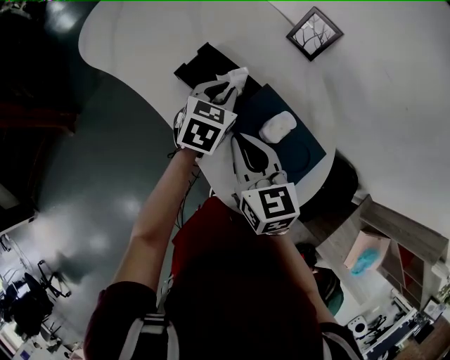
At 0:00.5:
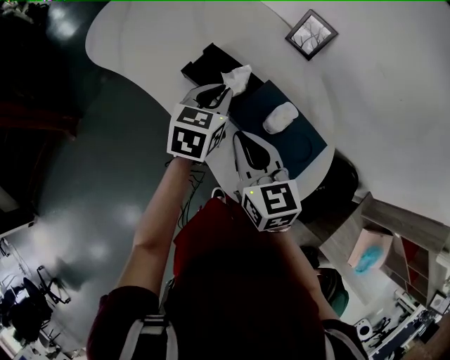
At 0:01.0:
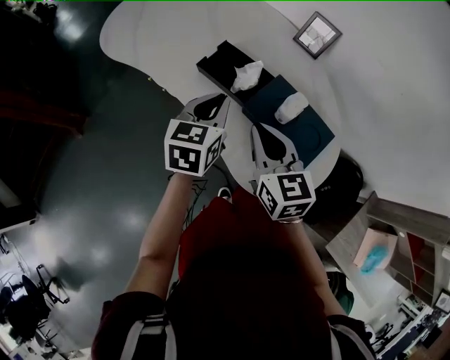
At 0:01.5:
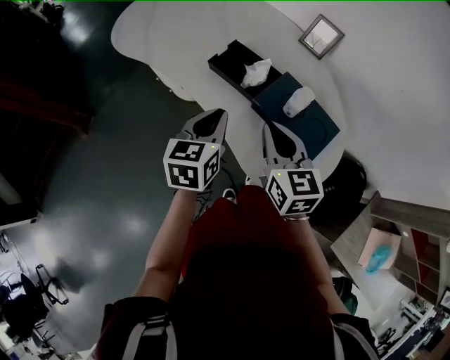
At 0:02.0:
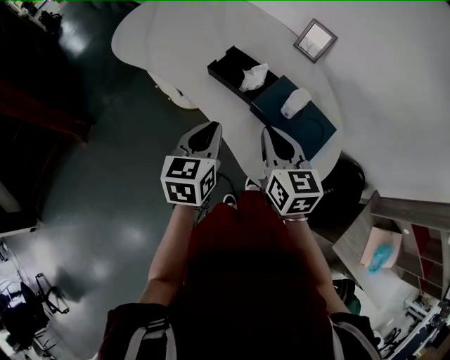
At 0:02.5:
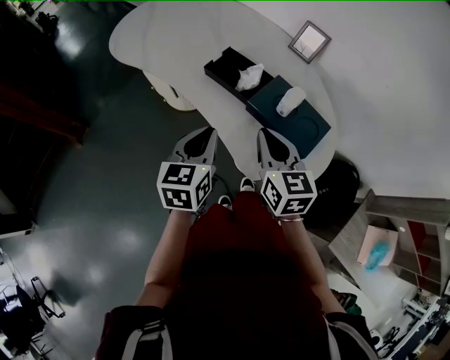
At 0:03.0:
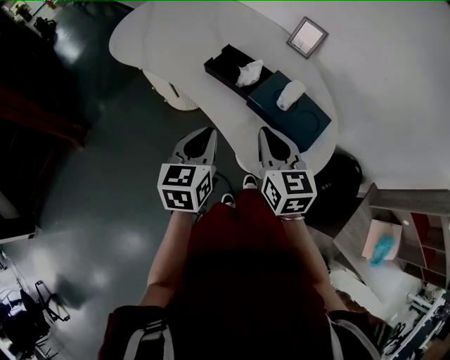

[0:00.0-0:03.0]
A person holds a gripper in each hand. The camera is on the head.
0:00.0 to 0:01.5: The left gripper shifts approximately 20 cm backward, to the left and upward, and swivels approximately 20 degrees. The right gripper moves backward, some 5 cm.
0:01.5 to 0:03.0: The left gripper goes roughly 5 cm backward.

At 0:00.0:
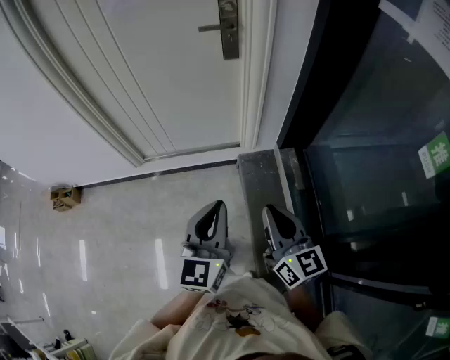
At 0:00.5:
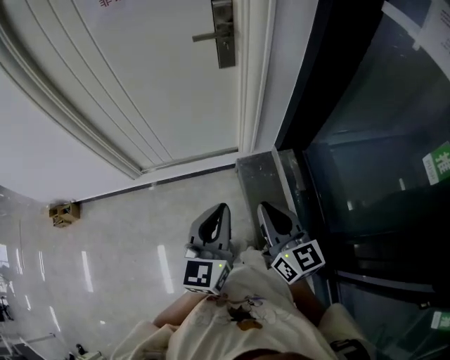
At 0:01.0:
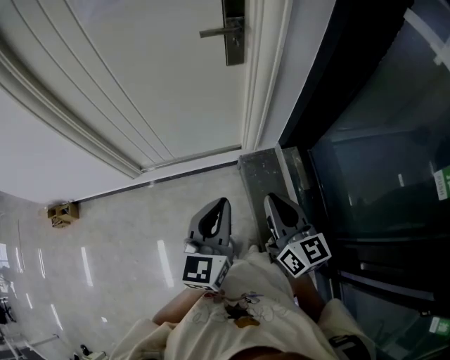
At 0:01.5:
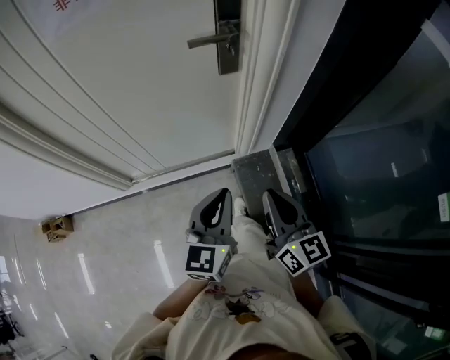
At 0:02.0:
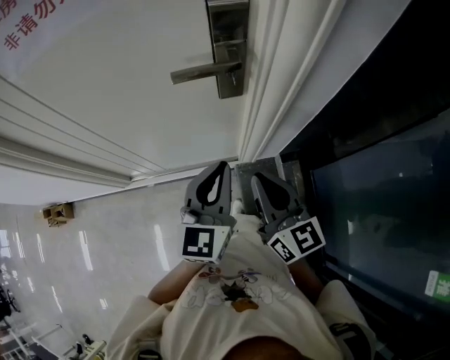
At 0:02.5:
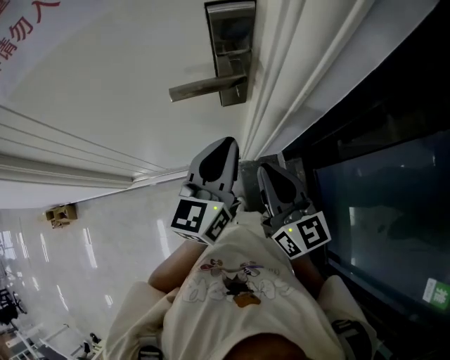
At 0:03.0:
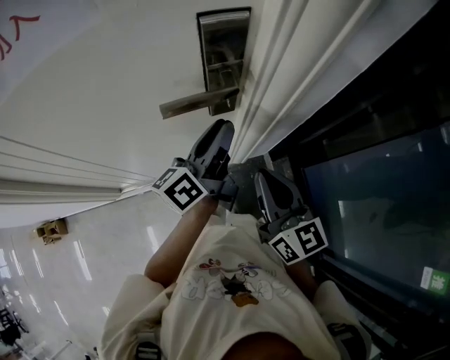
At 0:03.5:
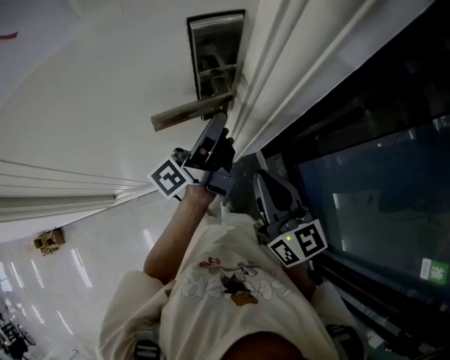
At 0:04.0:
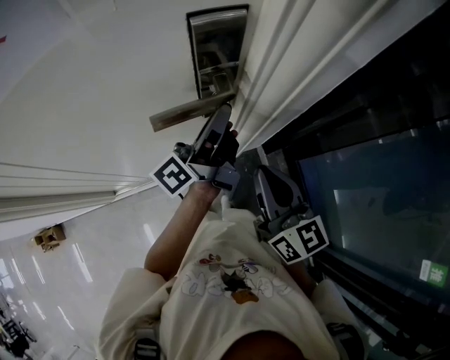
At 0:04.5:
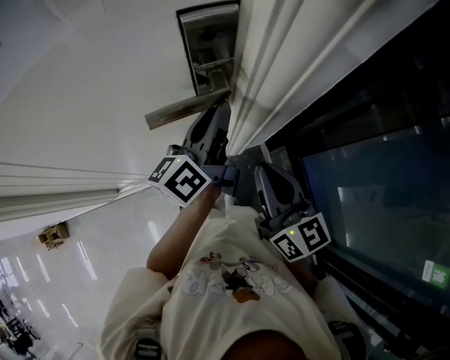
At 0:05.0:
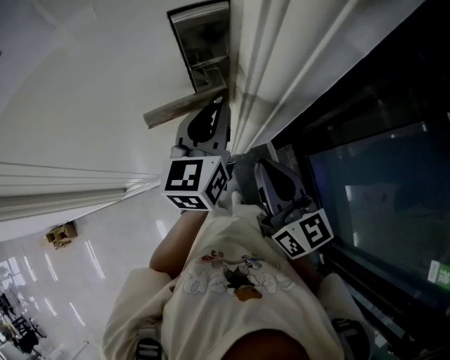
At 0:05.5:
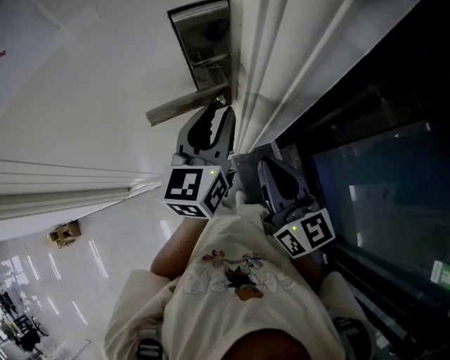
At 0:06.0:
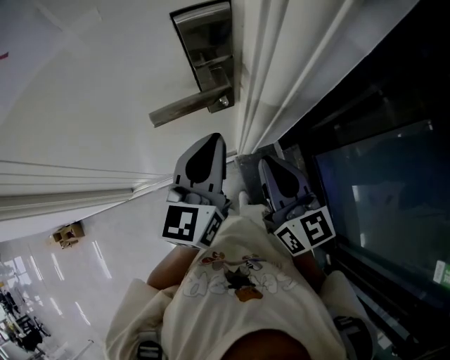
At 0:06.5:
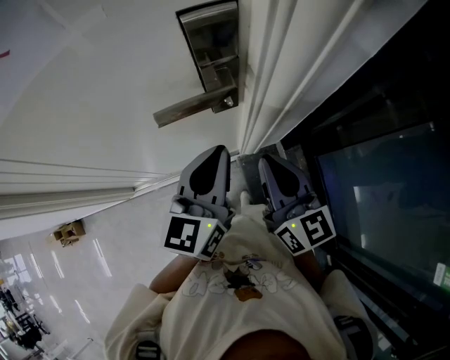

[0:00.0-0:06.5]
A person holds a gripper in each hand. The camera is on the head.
0:00.0 to 0:02.0: The two grippers travel together, forward, approximately 40 cm.
0:02.0 to 0:04.5: The right gripper heads forward, covering some 10 cm; the left gripper is displaced forward by about 20 cm, rolls counterclockwise, seen from behind, by about 50 degrees, and opens and closes again.
0:04.5 to 0:06.5: The left gripper moves backward, roughly 10 cm, and swivels roughly 40 degrees.

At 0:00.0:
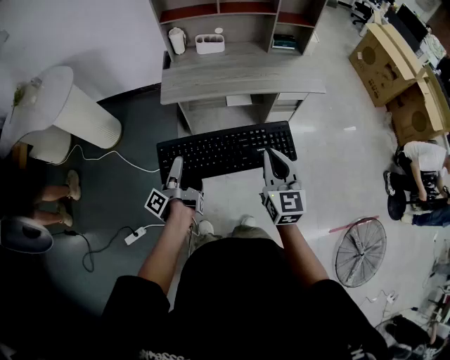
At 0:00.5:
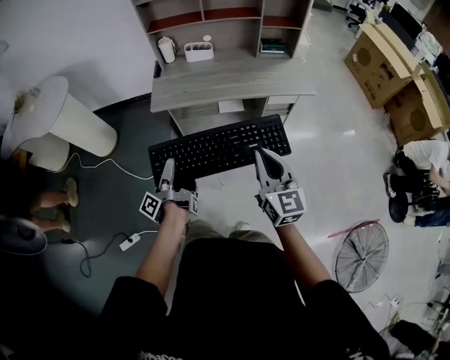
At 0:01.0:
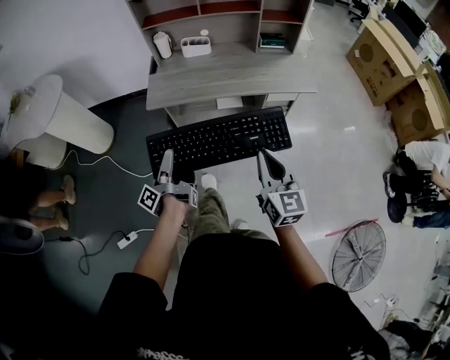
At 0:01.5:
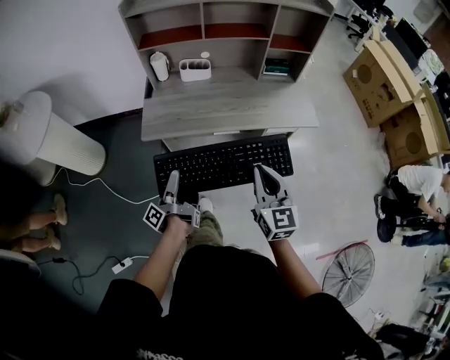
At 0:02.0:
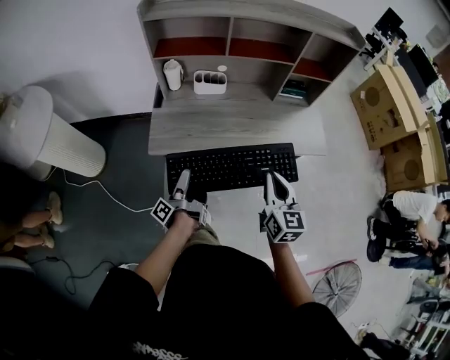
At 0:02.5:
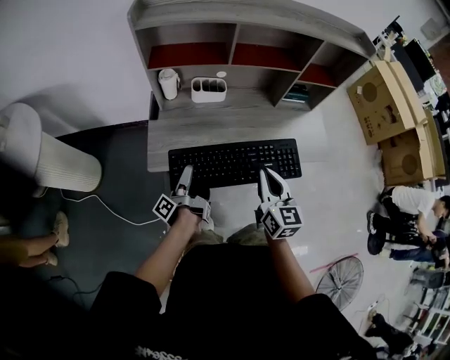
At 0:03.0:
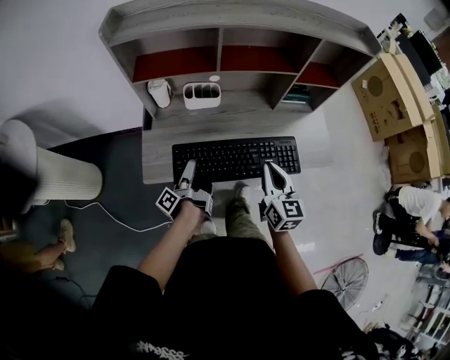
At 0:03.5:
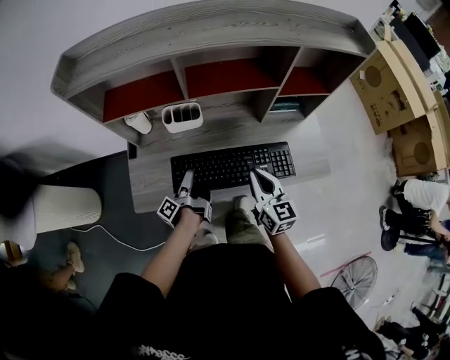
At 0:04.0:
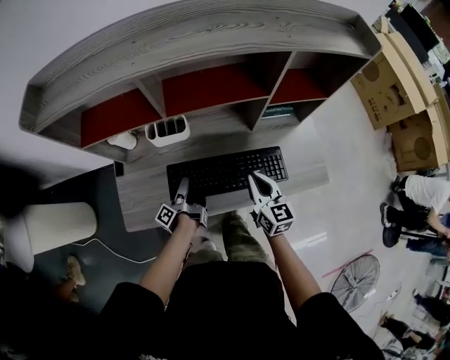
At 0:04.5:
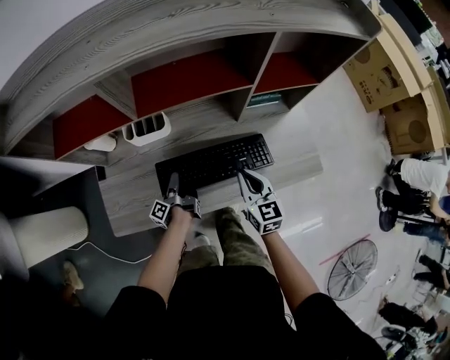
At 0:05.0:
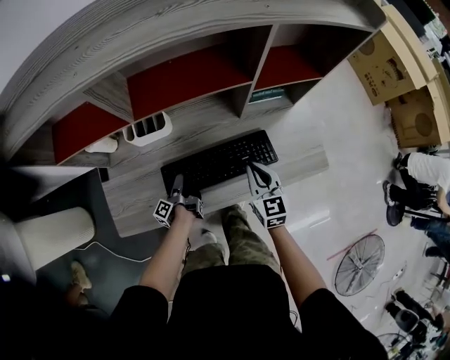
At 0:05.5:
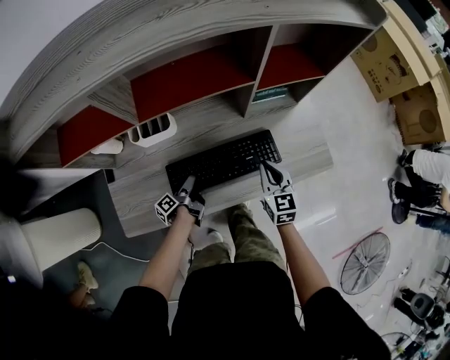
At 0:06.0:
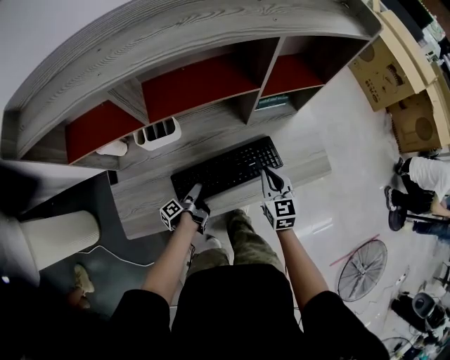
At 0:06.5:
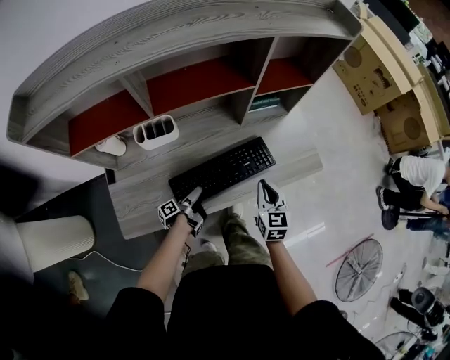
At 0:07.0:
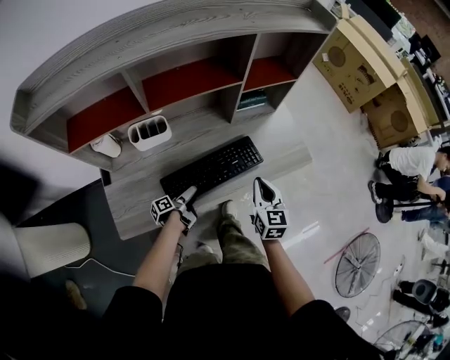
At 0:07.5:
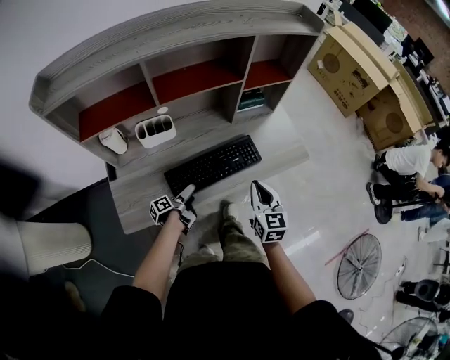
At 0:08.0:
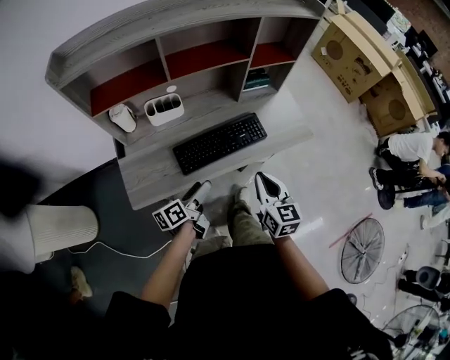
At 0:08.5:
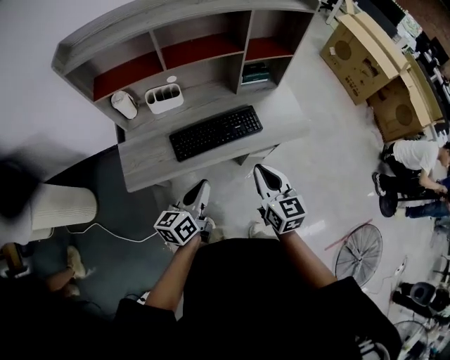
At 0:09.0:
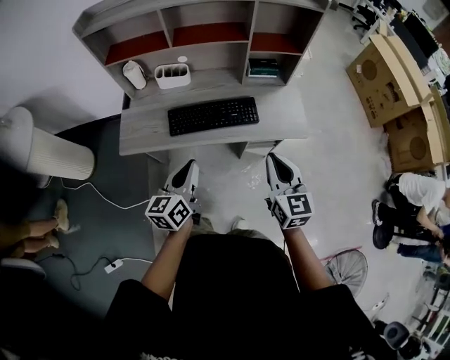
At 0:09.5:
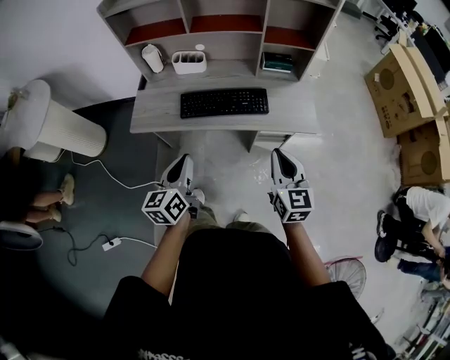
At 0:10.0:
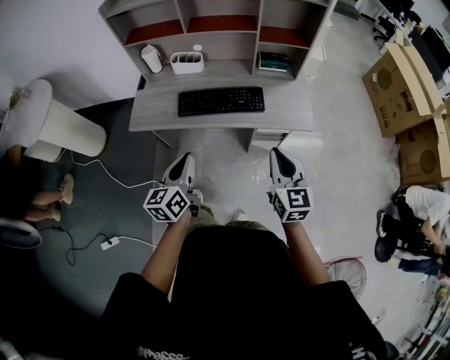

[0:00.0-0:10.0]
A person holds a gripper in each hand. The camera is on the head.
0:00.0 to 0:02.0: The right gripper changes place by approximately 30 cm.
0:02.0 to 0:04.0: The right gripper ends up about 35 cm from where it was.
0:04.0 to 0:06.0: The right gripper changes place by some 10 cm.
0:06.0 to 0:08.0: The right gripper moves approximately 25 cm.
0:08.0 to 0:10.0: The right gripper shifts by some 25 cm, and rotates about 20 degrees.

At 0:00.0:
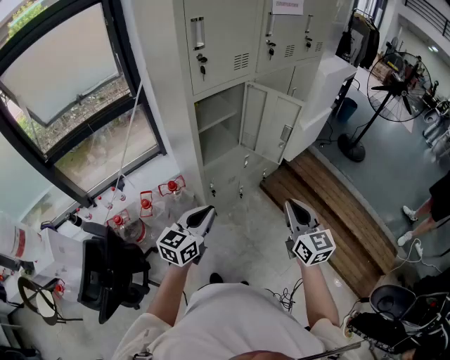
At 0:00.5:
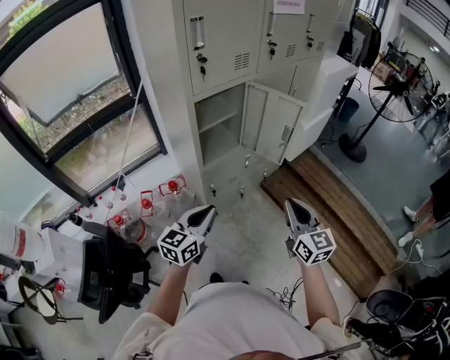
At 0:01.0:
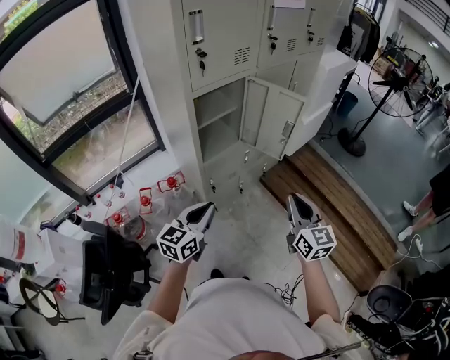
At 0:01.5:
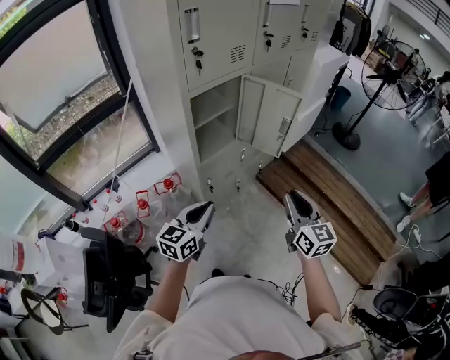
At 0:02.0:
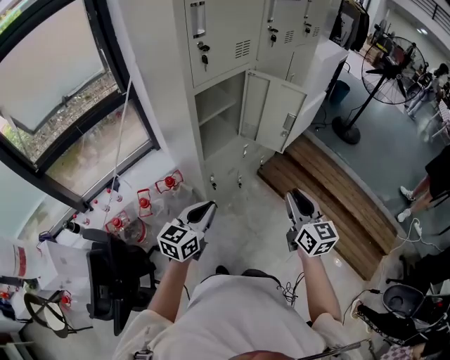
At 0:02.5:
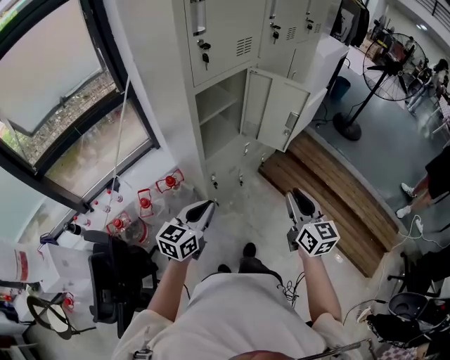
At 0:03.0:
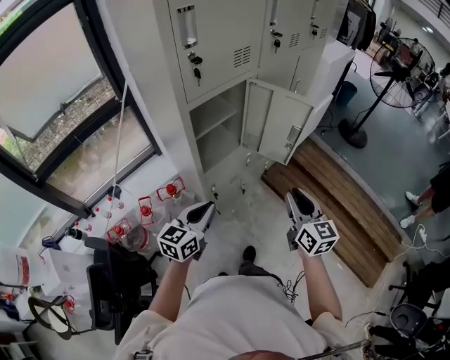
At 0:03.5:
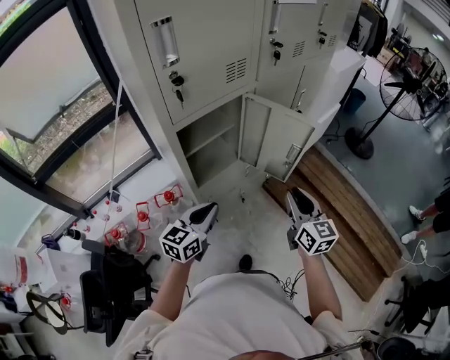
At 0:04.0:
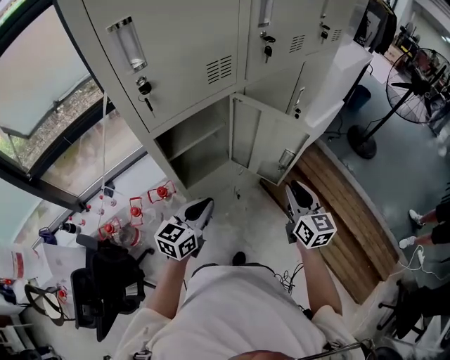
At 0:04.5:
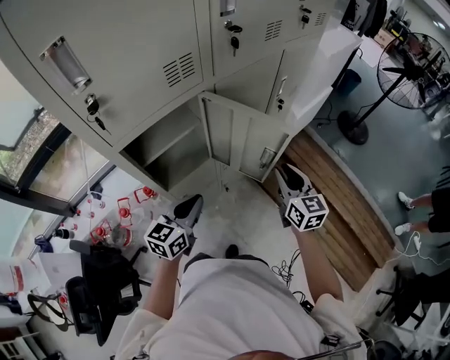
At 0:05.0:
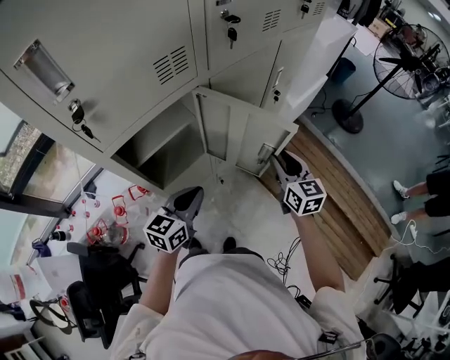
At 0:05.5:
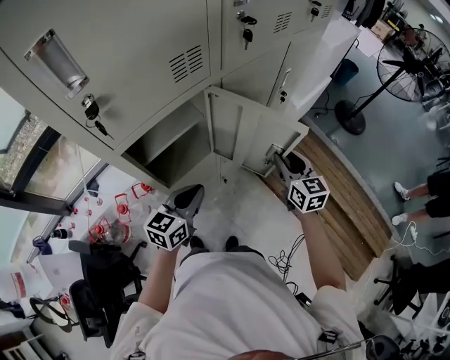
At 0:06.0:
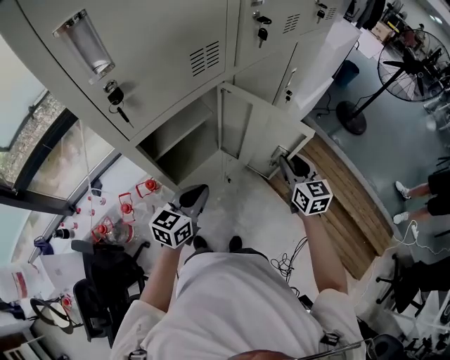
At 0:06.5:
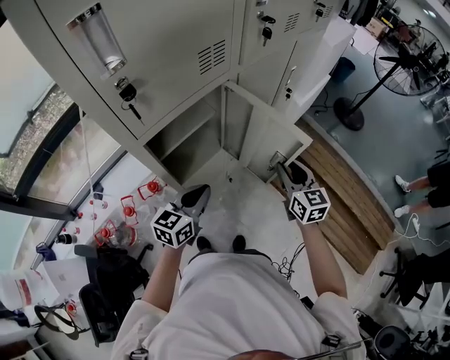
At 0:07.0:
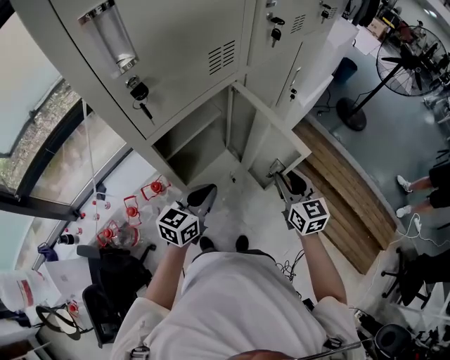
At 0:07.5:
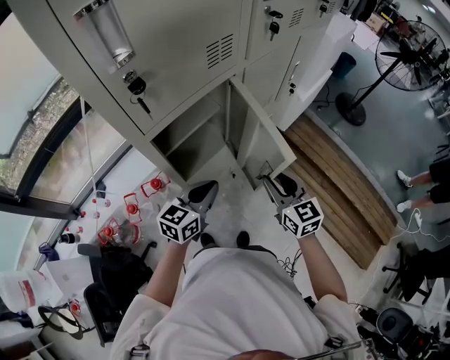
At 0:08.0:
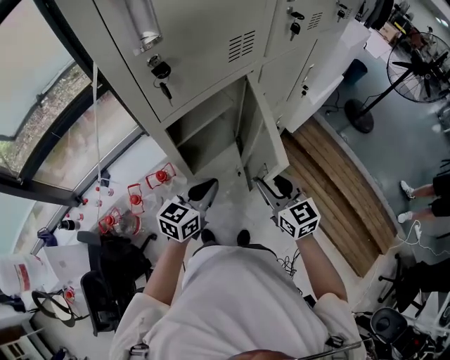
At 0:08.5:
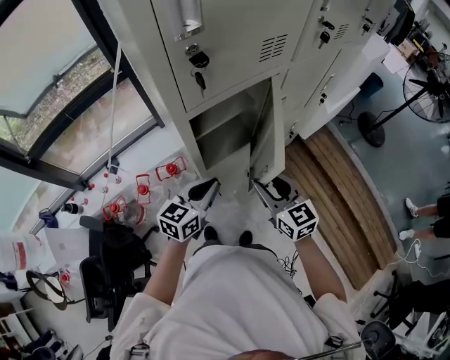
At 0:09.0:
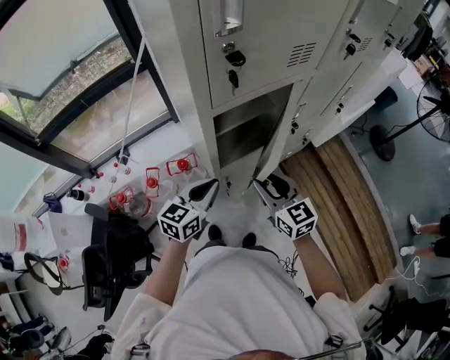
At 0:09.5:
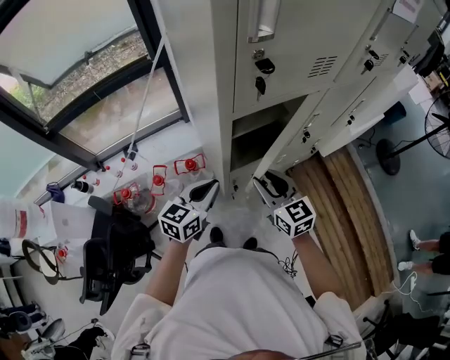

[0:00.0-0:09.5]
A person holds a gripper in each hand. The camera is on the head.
0:00.0 to 0:02.0: The left gripper ends up about 5 cm from where it was.
0:02.0 to 0:04.0: The grippers both shift forward by approximately 25 cm.
0:04.0 to 0:05.5: The left gripper shifts some 5 cm forward. The right gripper is displaced forward by approximately 10 cm.
0:05.5 to 0:07.5: The right gripper shifts approximately 15 cm backward and to the left.
0:07.5 to 0:09.5: The grippers both shift to the left by some 15 cm. The left gripper swivels some 20 degrees. Meanwhile the right gripper turns by approximately 20 degrees.
